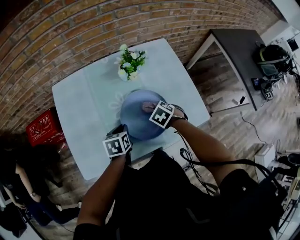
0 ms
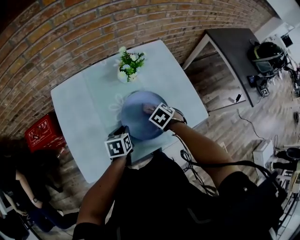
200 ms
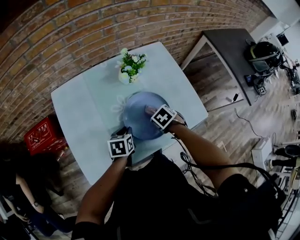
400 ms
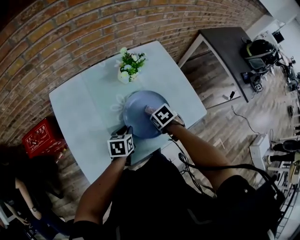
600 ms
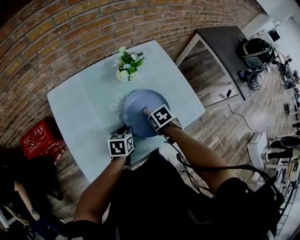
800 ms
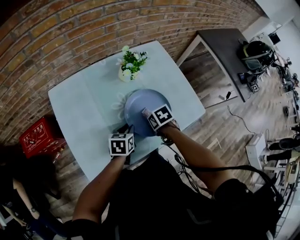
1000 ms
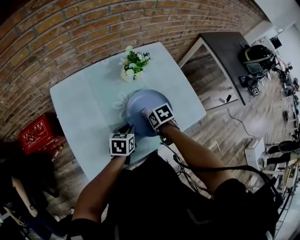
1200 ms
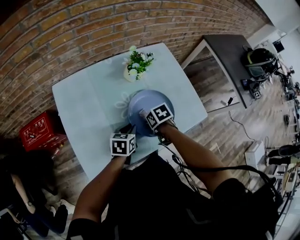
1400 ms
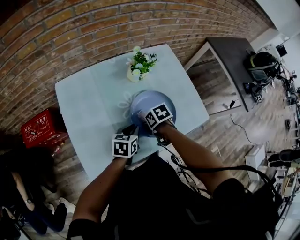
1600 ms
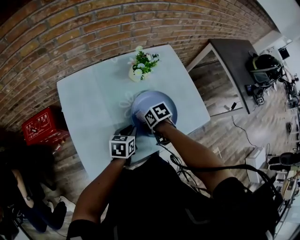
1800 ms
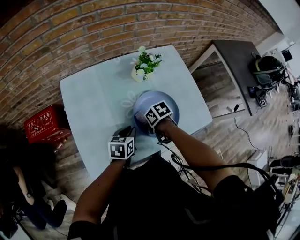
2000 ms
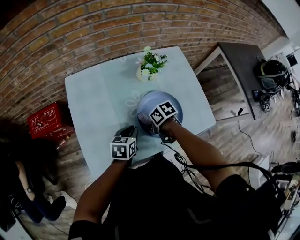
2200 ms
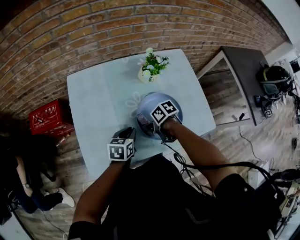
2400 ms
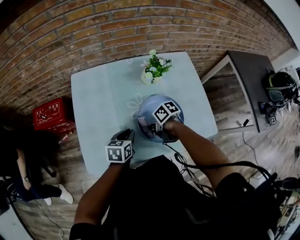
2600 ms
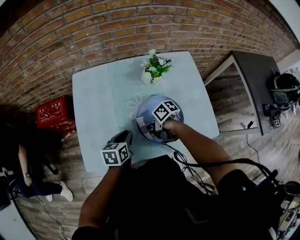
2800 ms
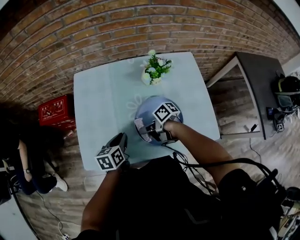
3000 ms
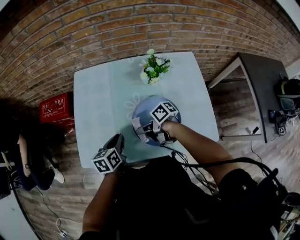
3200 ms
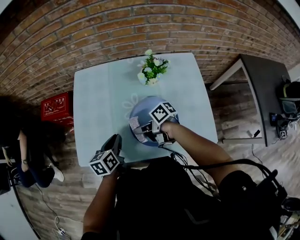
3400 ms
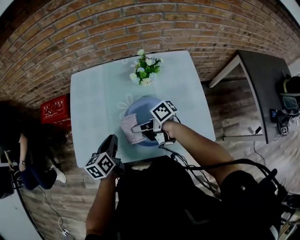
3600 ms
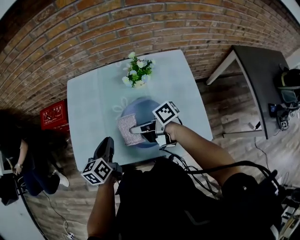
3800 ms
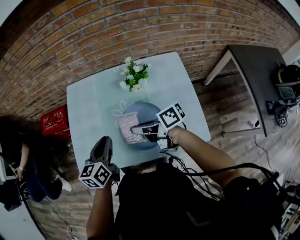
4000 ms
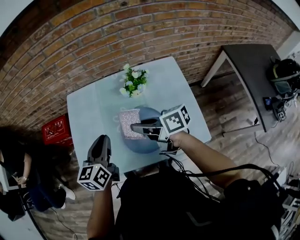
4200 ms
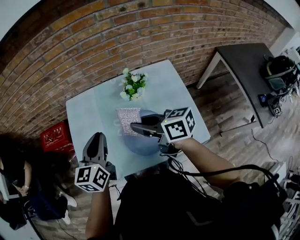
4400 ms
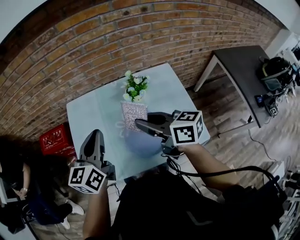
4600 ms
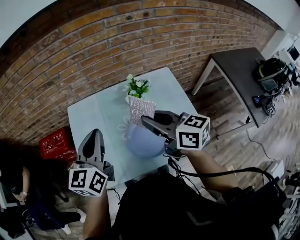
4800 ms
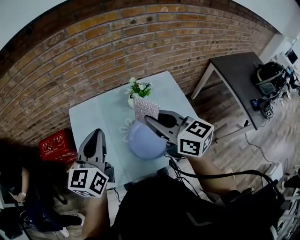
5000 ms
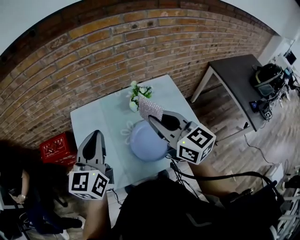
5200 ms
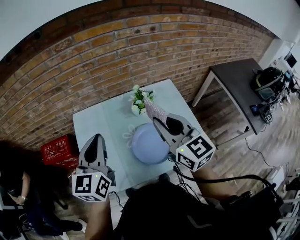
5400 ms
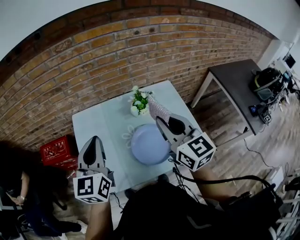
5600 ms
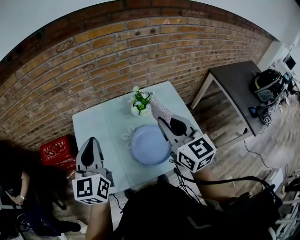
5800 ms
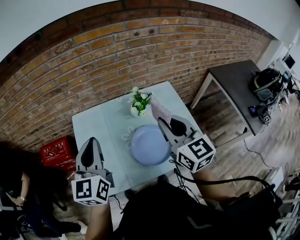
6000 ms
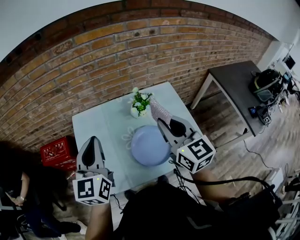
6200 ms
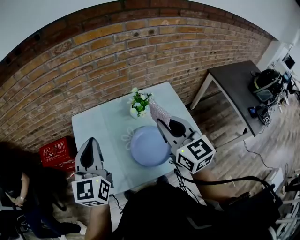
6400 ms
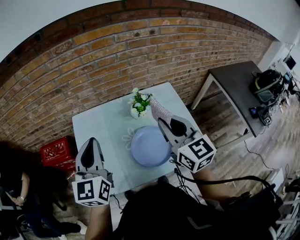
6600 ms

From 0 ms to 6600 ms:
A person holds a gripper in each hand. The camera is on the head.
From 0 ms to 1600 ms: The left gripper changes its angle by some 20 degrees. Meanwhile the right gripper shifts by some 10 cm, and twists about 40 degrees clockwise, seen from behind.
From 1600 ms to 3200 ms: The right gripper moves approximately 5 cm, and points its fingers about 40 degrees further upward; the left gripper changes place by about 10 cm, and swivels roughly 40 degrees.
From 3200 ms to 5000 ms: Both grippers move upward, some 30 cm. The left gripper points its fingers roughly 30 degrees further upward; the right gripper turns by about 80 degrees.
From 5000 ms to 6600 ms: The right gripper changes its angle by approximately 20 degrees.

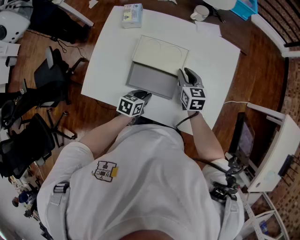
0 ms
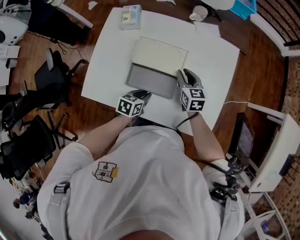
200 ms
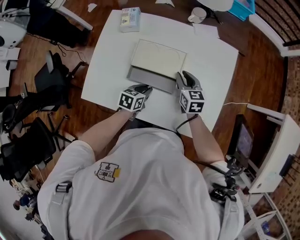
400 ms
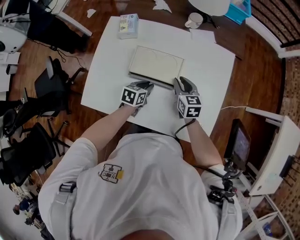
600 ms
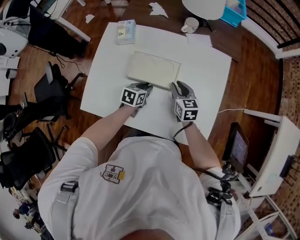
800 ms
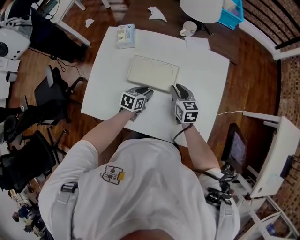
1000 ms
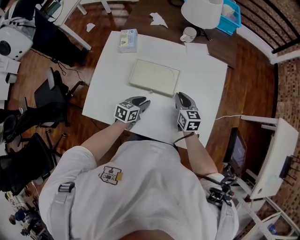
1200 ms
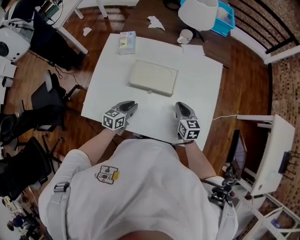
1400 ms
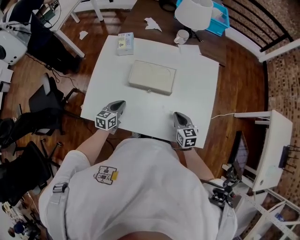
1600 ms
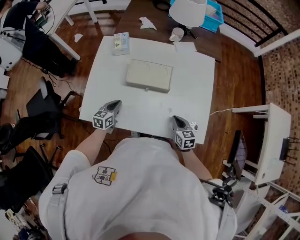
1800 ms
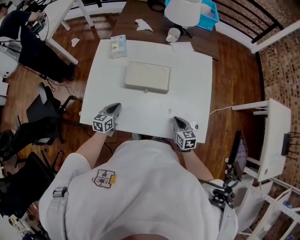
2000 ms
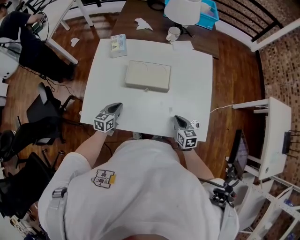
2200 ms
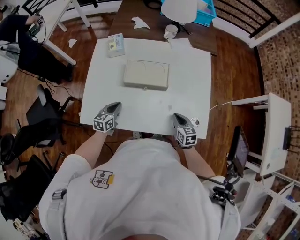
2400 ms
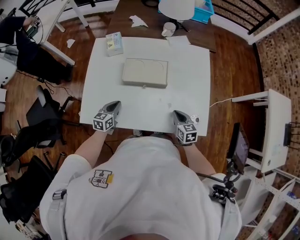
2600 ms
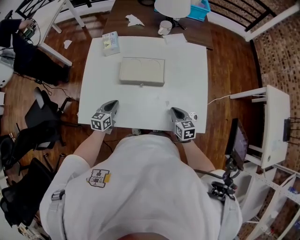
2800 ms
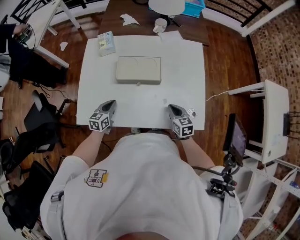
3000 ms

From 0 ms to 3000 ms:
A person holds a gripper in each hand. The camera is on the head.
From 0 ms to 1600 ms: The left gripper goes about 10 cm to the left, and turns by some 20 degrees; the right gripper is displaced backward by approximately 15 cm, and closes.
From 1600 ms to 3000 ms: The grippers make only small movements.

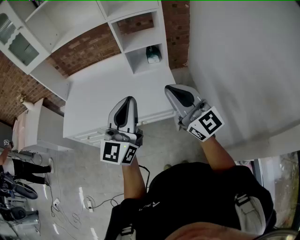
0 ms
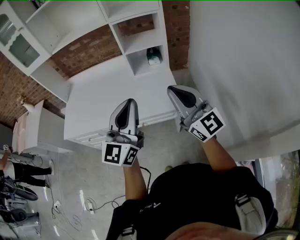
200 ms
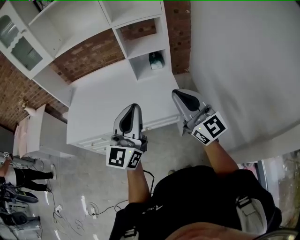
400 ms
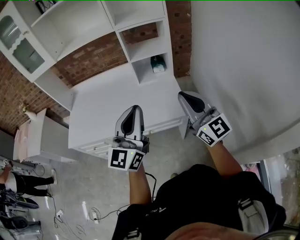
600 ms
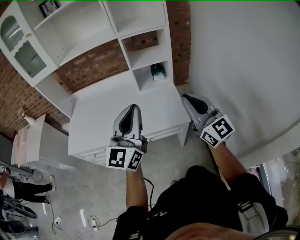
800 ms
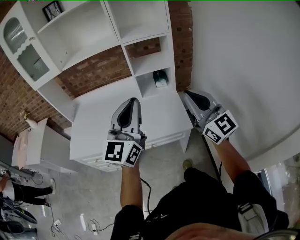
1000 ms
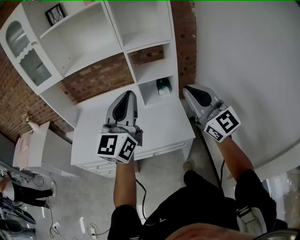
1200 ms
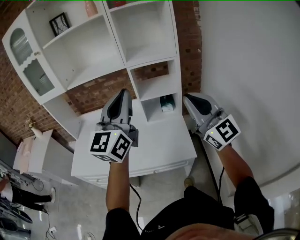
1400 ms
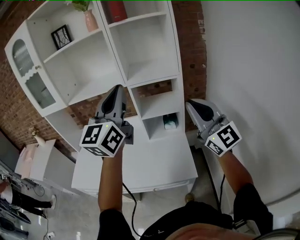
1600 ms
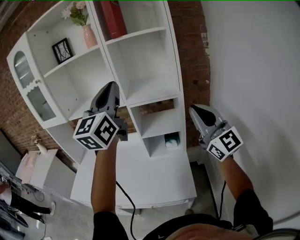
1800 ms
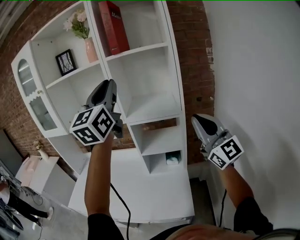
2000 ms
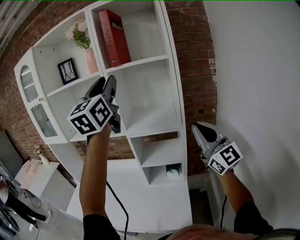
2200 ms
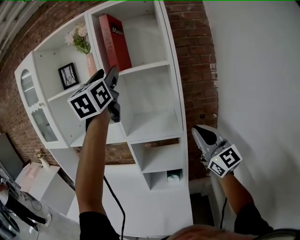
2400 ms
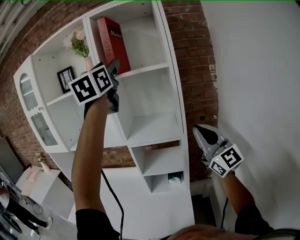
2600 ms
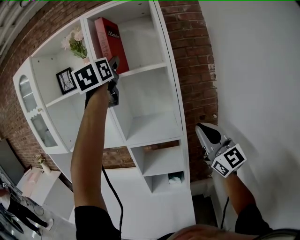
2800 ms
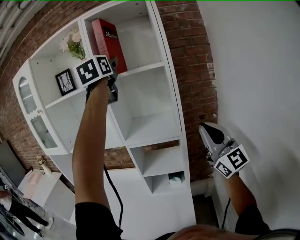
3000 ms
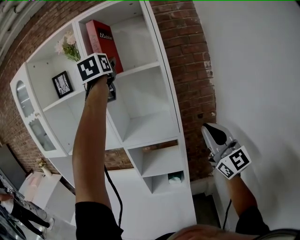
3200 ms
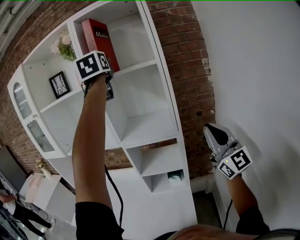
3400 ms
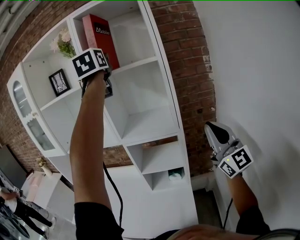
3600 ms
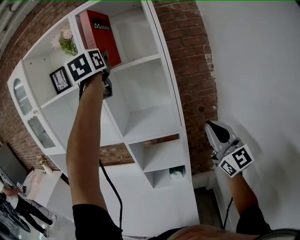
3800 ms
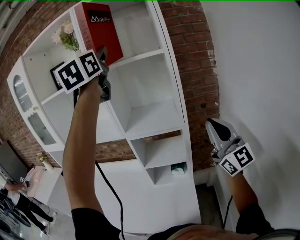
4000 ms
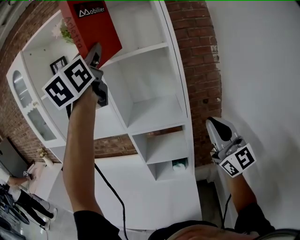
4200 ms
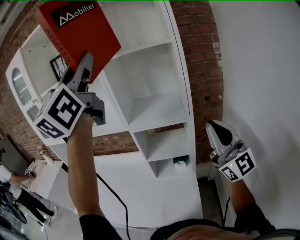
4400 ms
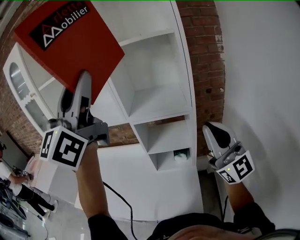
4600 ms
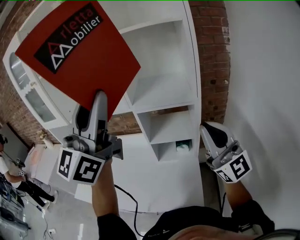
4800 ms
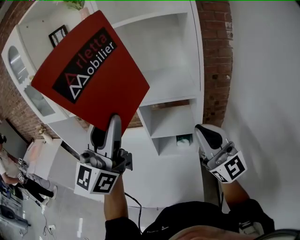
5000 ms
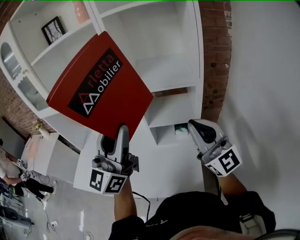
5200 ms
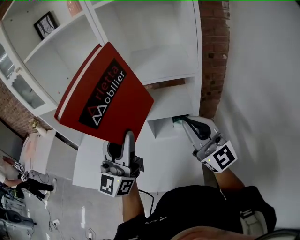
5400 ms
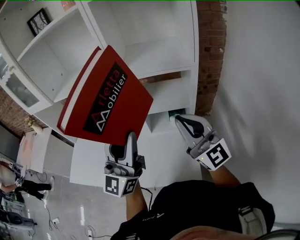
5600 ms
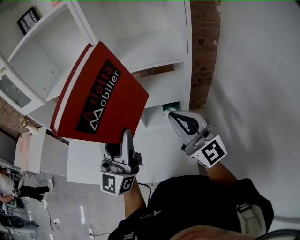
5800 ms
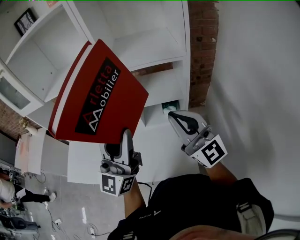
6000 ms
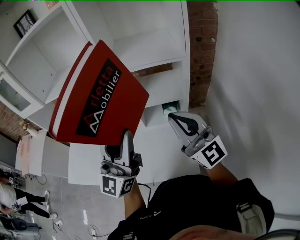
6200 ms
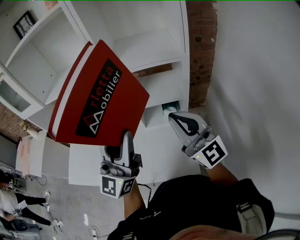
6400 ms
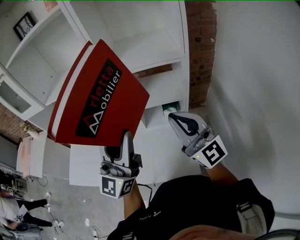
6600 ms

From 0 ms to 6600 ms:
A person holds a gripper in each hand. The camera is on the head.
From 0 ms to 1600 ms: The two grippers go about 25 cm forward and upward.
From 1600 ms to 3200 ms: The left gripper travels forward and upward by some 40 cm, turns by approximately 30 degrees, and opens up. Meanwhile the right gripper is displaced to the right and forward by roughly 20 cm.
From 3200 ms to 5000 ms: The left gripper moves downward, backward and to the left, roughly 35 cm, turns by approximately 30 degrees, and closes its fingers. The right gripper goes some 15 cm to the left and downward.
From 5000 ms to 6600 ms: The right gripper heads downward and to the left, covering about 10 cm. The left gripper shifts approximately 15 cm downward.

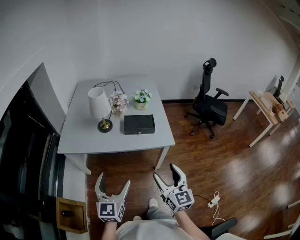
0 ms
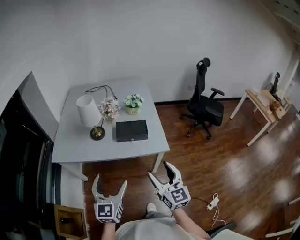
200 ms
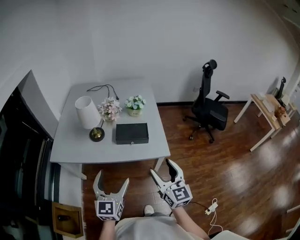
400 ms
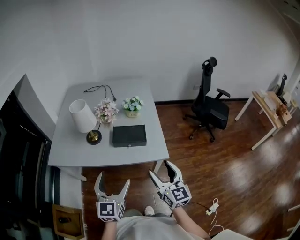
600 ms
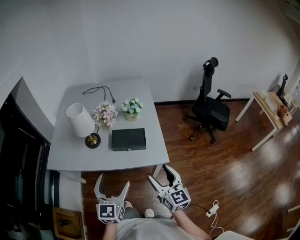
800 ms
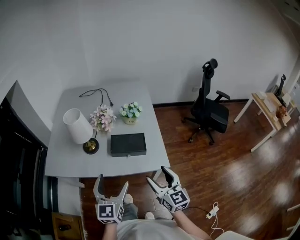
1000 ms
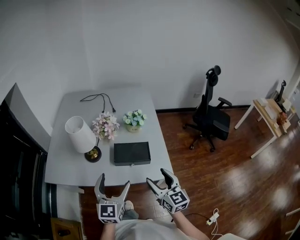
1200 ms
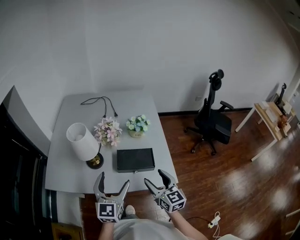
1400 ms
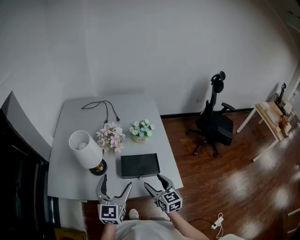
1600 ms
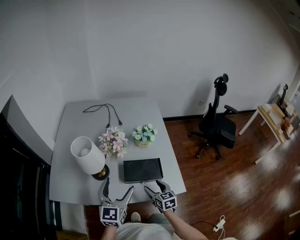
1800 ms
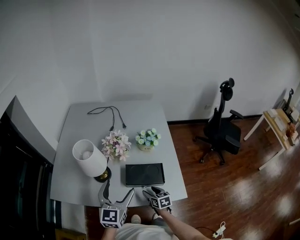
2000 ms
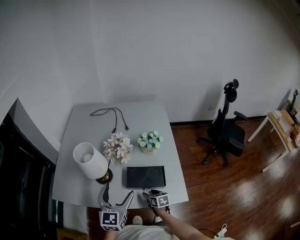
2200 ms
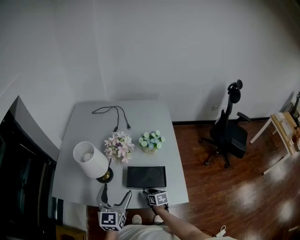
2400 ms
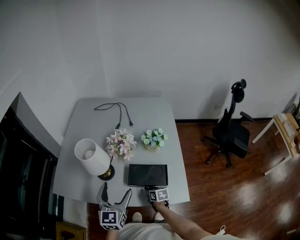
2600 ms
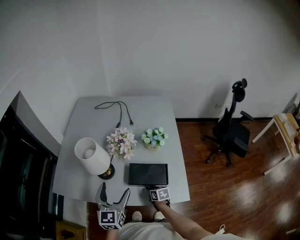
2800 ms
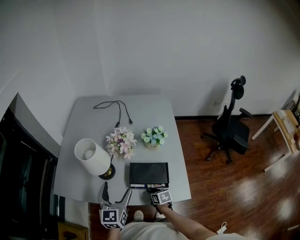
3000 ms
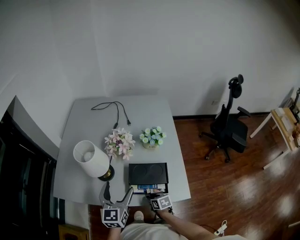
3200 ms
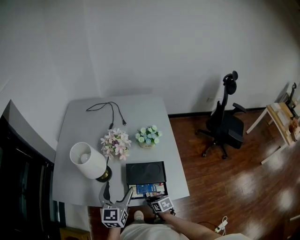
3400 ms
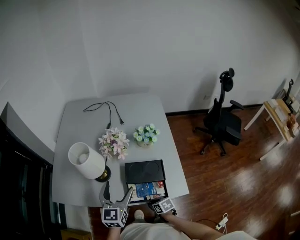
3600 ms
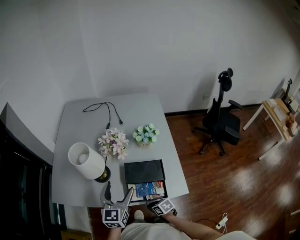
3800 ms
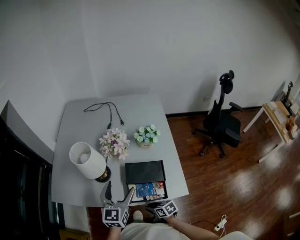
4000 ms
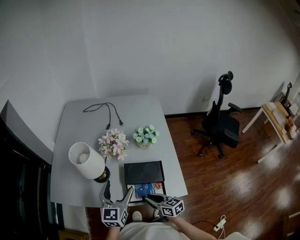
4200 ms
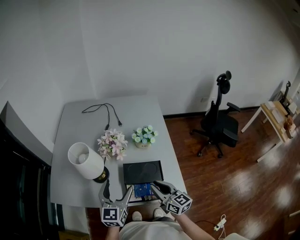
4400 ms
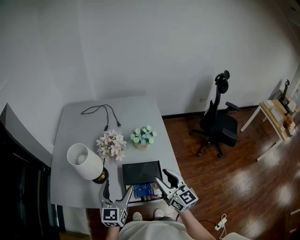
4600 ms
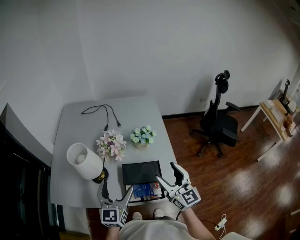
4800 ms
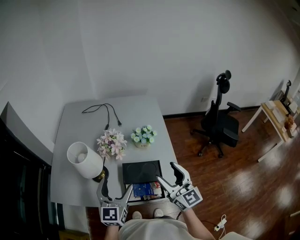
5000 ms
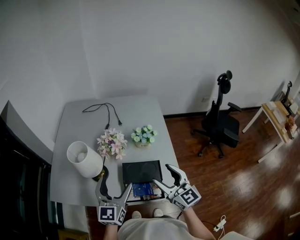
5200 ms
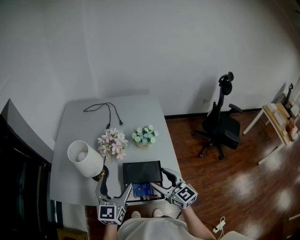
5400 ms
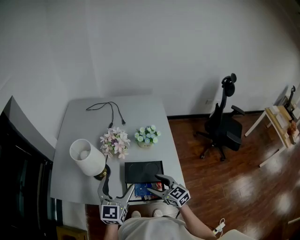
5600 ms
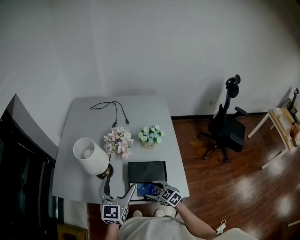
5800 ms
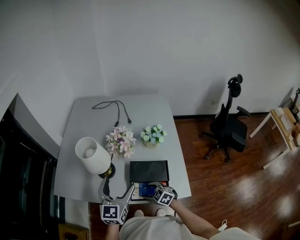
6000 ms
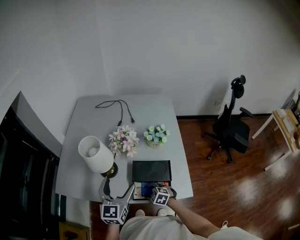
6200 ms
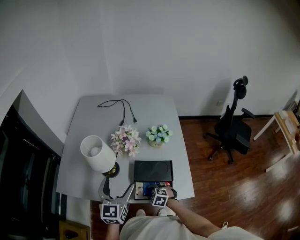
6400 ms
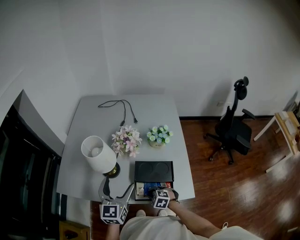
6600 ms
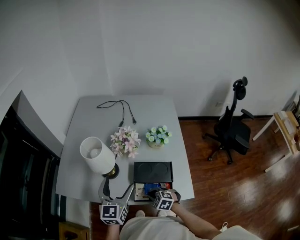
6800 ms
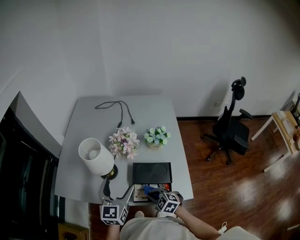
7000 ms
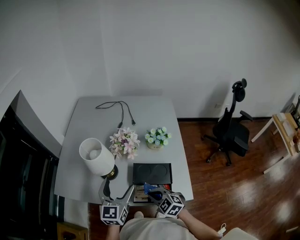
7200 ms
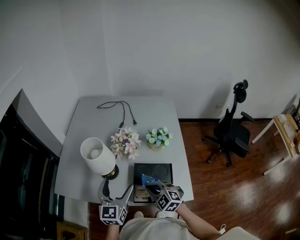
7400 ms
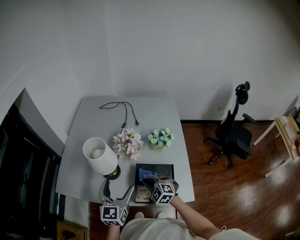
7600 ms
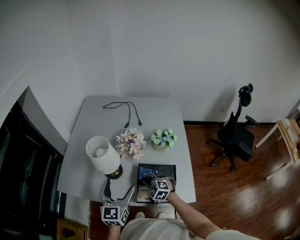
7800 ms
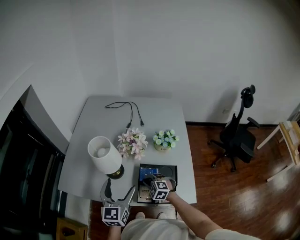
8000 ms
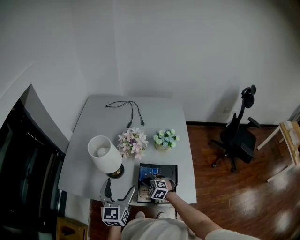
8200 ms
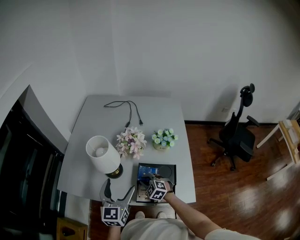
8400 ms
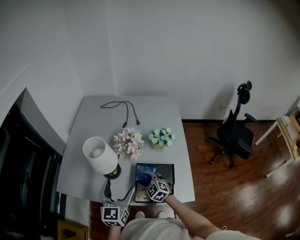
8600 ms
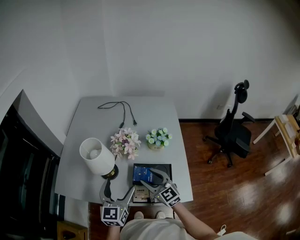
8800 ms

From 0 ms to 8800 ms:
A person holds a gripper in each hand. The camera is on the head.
From 0 ms to 1400 ms: The grippers both shift forward by approximately 30 cm.
From 1400 ms to 3000 ms: The right gripper shifts about 25 cm downward, points its fingers approximately 40 degrees further downward, and closes up. Meanwhile the left gripper heads forward, covering approximately 5 cm.
From 3000 ms to 4400 ms: The right gripper shifts roughly 25 cm upward, and tilts its fingers roughly 40 degrees upward.
From 4400 ms to 5800 ms: The right gripper moves downward, about 15 cm, turns by approximately 40 degrees, and opens its fingers.
From 5800 ms to 7400 ms: The right gripper heads upward, covering about 10 cm, rotates roughly 30 degrees, and closes up.
From 7400 ms to 8800 ms: The right gripper goes approximately 10 cm upward and forward, rotates approximately 40 degrees, and opens up.
